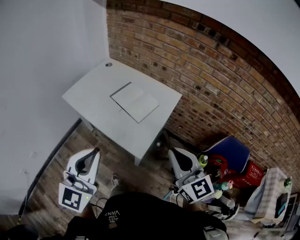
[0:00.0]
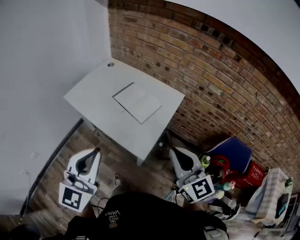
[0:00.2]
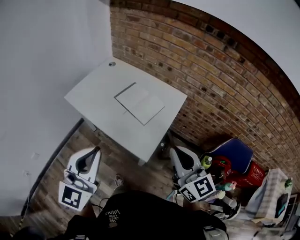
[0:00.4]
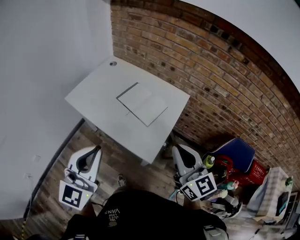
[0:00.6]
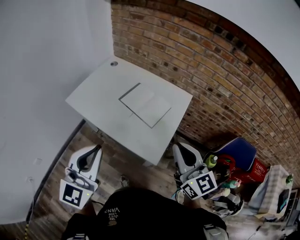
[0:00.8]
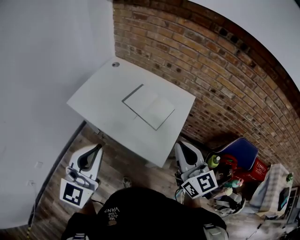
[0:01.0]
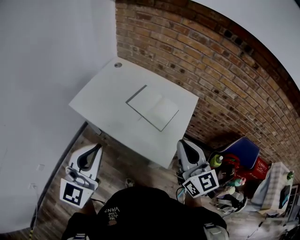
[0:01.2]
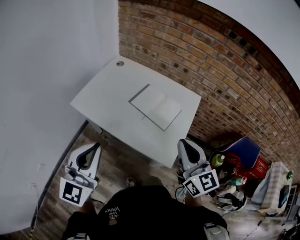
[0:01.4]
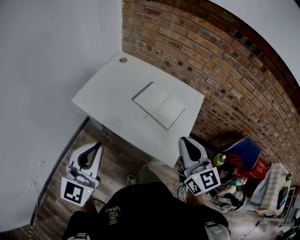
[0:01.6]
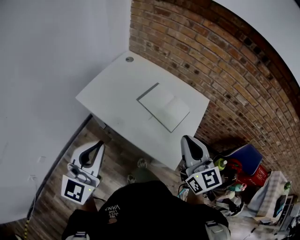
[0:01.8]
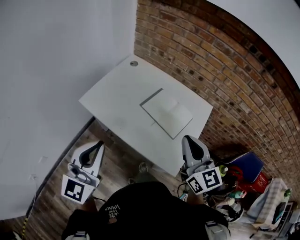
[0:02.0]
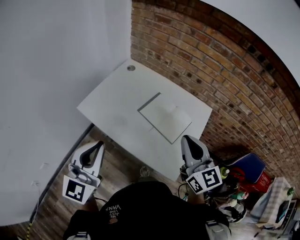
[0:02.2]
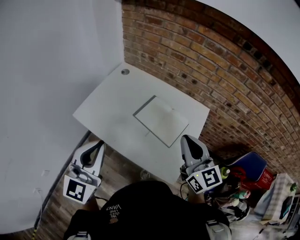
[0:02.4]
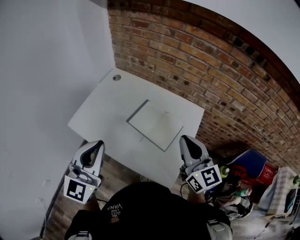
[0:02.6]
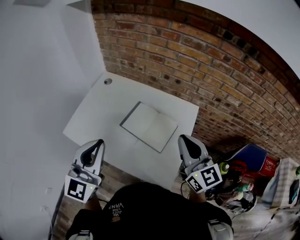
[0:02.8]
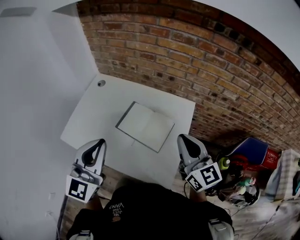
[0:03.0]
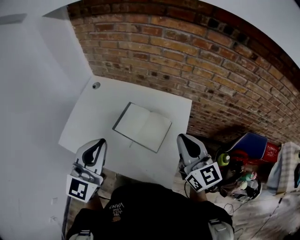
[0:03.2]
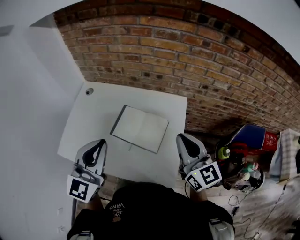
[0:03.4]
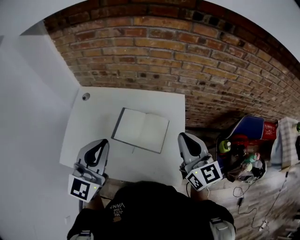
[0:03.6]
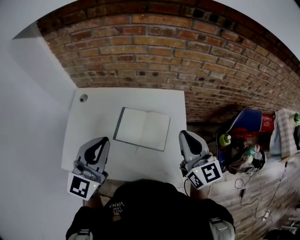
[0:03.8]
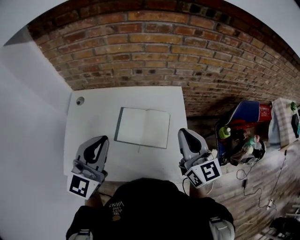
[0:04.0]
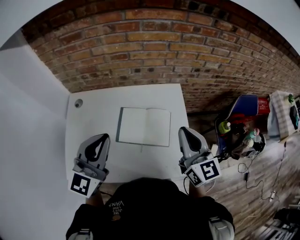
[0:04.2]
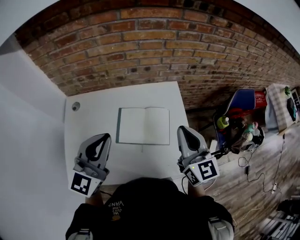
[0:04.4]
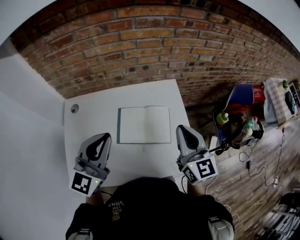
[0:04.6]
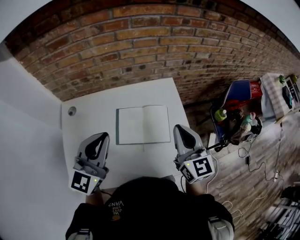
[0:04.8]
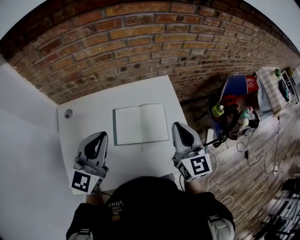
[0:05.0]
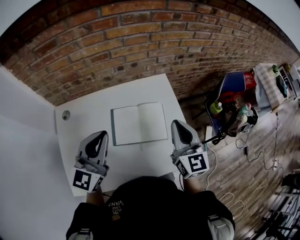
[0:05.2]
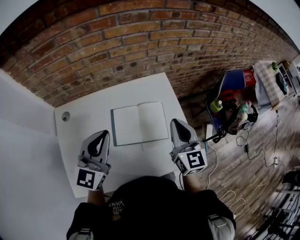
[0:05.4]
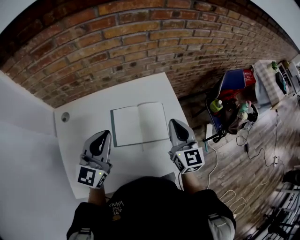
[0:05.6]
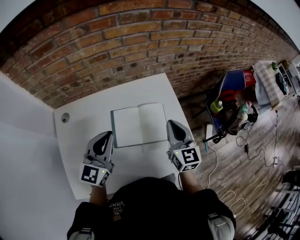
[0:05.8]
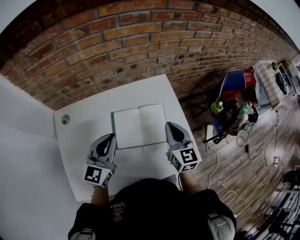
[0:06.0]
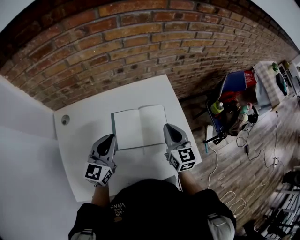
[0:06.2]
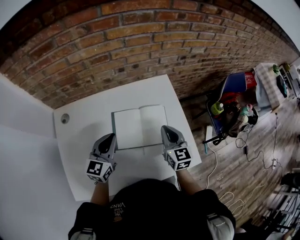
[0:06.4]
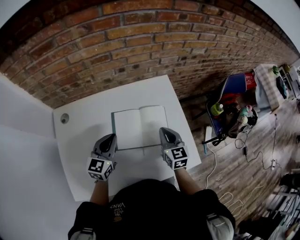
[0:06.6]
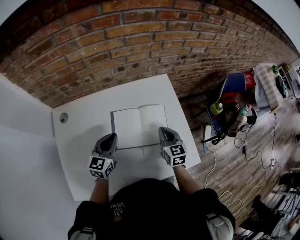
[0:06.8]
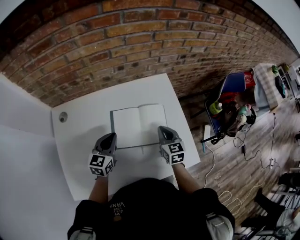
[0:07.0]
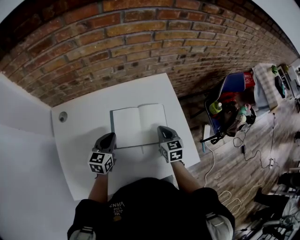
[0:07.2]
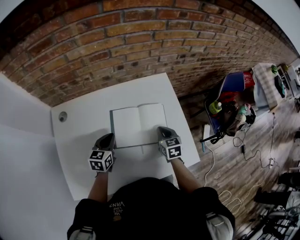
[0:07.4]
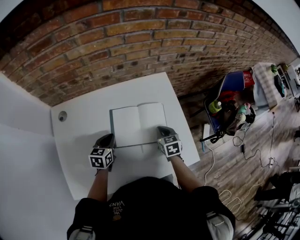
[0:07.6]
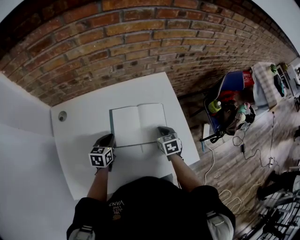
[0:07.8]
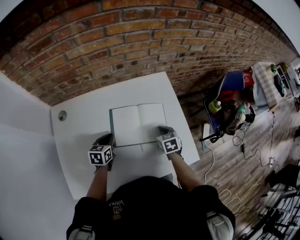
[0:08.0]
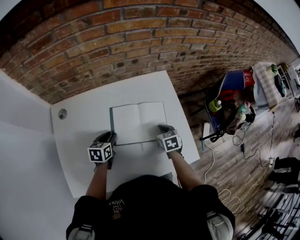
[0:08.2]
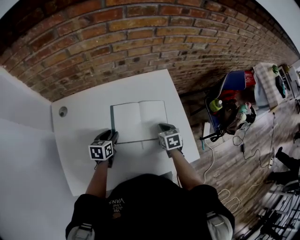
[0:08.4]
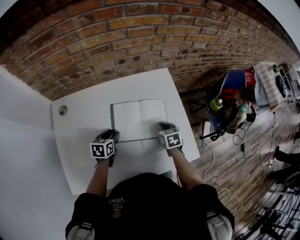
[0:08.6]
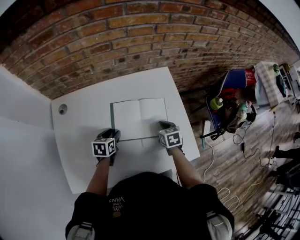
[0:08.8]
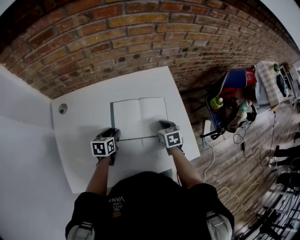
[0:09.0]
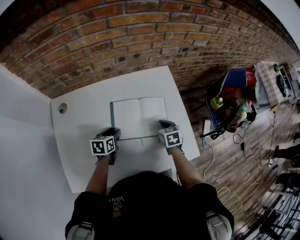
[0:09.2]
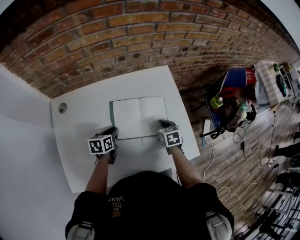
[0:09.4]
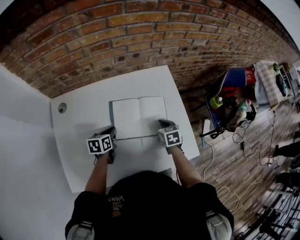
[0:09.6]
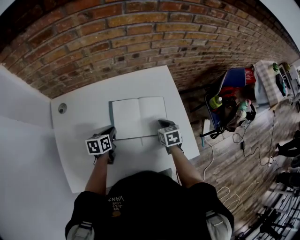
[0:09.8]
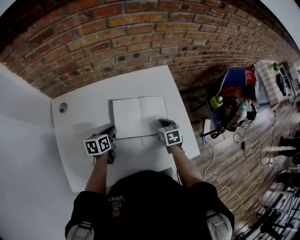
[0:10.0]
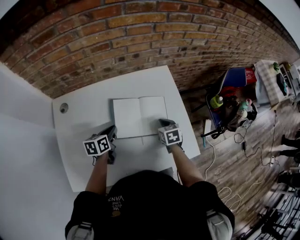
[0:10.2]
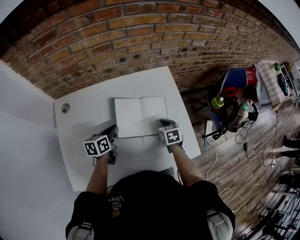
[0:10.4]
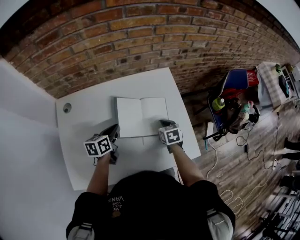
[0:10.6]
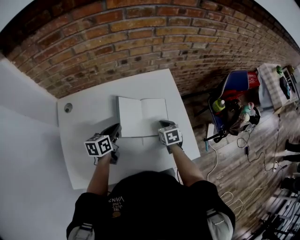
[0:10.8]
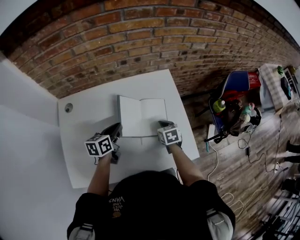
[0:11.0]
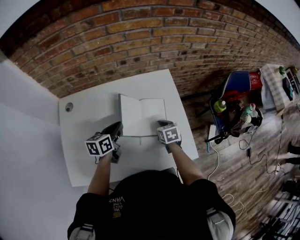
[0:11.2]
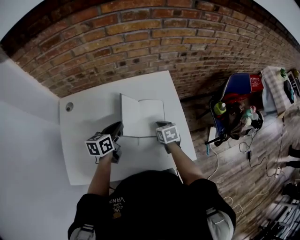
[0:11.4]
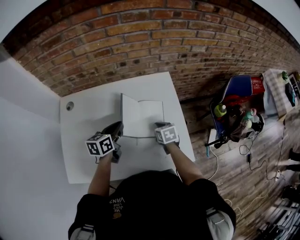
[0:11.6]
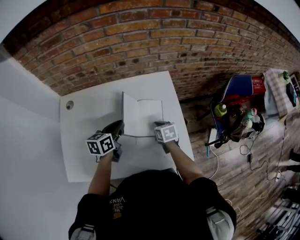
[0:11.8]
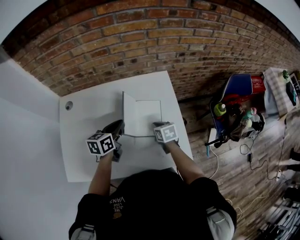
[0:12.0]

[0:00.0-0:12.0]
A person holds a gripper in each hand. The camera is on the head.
0:00.0 to 0:01.6: The two grippers go about 25 cm to the left and forward.
0:01.6 to 0:03.0: The two grippers go approximately 20 cm forward and to the right.
0:03.0 to 0:04.4: The left gripper changes place by roughly 15 cm, and changes its angle by roughly 30 degrees, while the right gripper ends up roughly 5 cm from where it was, and changes its angle by roughly 30 degrees.
0:04.4 to 0:06.0: The left gripper moves downward and forward, about 15 cm; the right gripper shifts some 15 cm downward.
0:06.0 to 0:07.6: Both grippers travel together downward, roughly 20 cm. The left gripper tilts its fingers about 30 degrees downward, while the right gripper angles its fingers downward, by approximately 30 degrees.
0:07.6 to 0:09.0: The left gripper opens.
0:09.0 to 0:10.4: The left gripper moves upward, approximately 5 cm, and closes up.
0:10.4 to 0:12.0: The left gripper is displaced to the right and upward by approximately 10 cm.

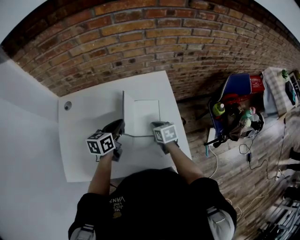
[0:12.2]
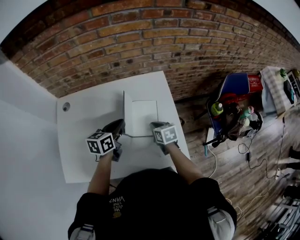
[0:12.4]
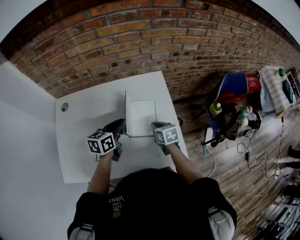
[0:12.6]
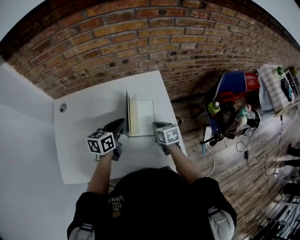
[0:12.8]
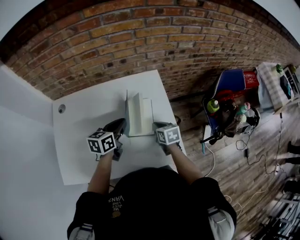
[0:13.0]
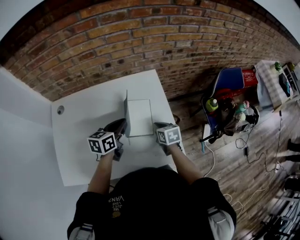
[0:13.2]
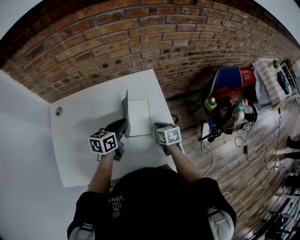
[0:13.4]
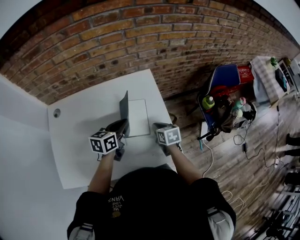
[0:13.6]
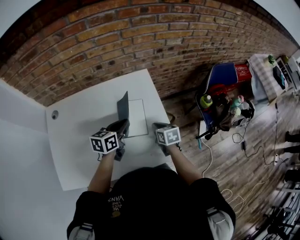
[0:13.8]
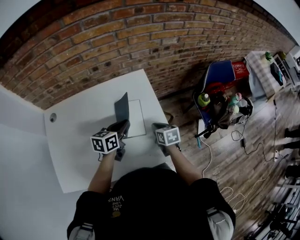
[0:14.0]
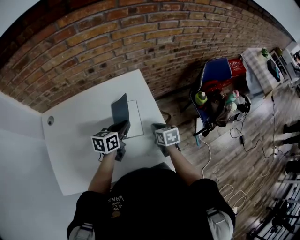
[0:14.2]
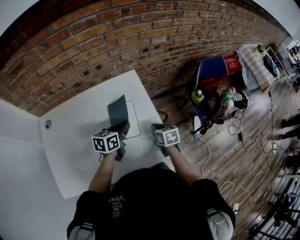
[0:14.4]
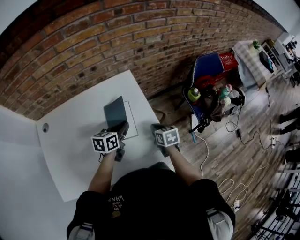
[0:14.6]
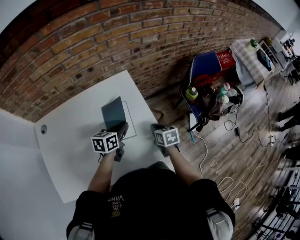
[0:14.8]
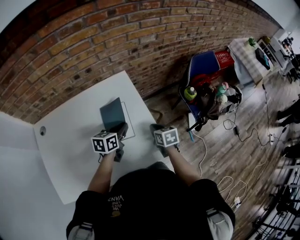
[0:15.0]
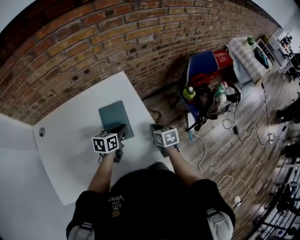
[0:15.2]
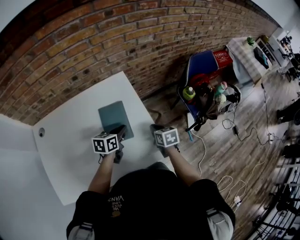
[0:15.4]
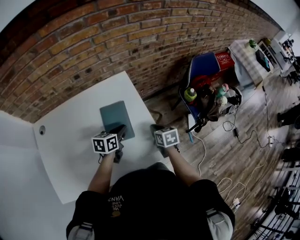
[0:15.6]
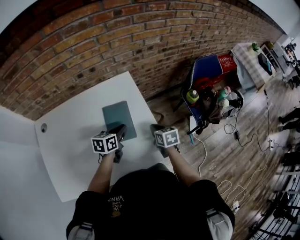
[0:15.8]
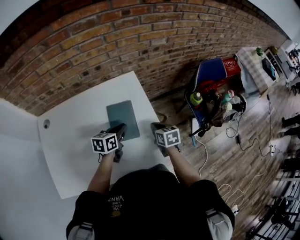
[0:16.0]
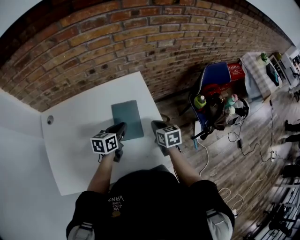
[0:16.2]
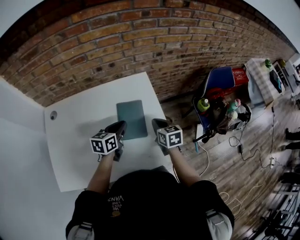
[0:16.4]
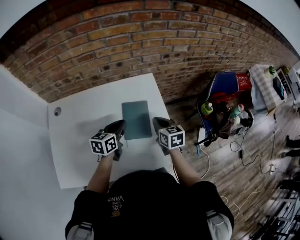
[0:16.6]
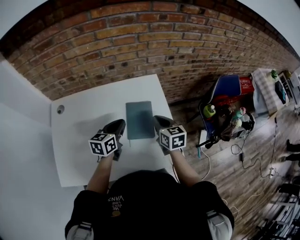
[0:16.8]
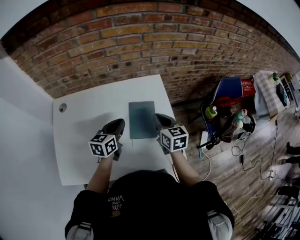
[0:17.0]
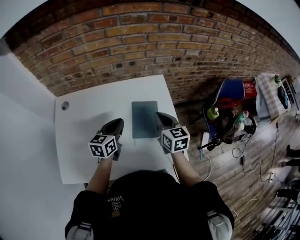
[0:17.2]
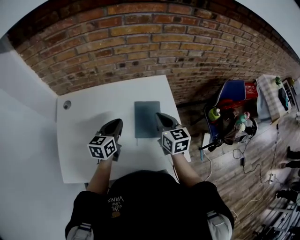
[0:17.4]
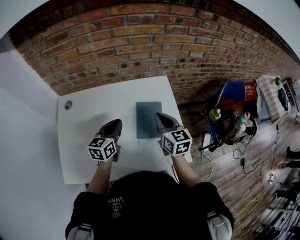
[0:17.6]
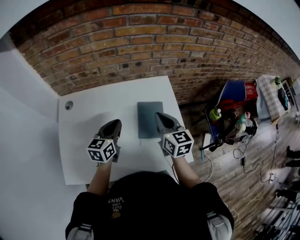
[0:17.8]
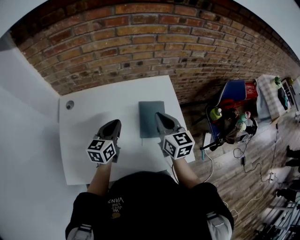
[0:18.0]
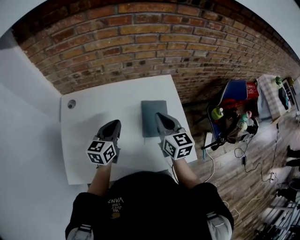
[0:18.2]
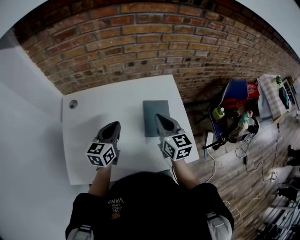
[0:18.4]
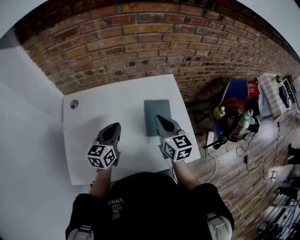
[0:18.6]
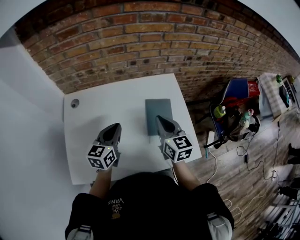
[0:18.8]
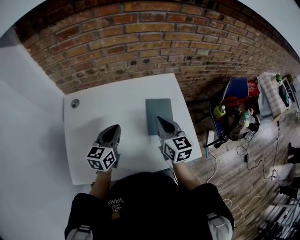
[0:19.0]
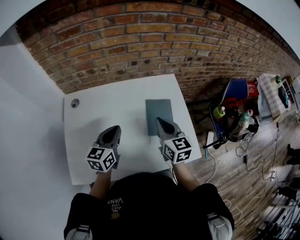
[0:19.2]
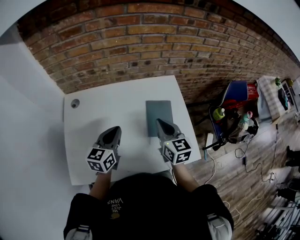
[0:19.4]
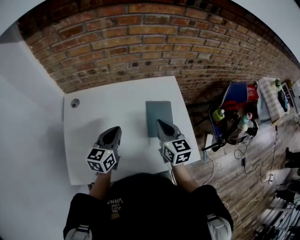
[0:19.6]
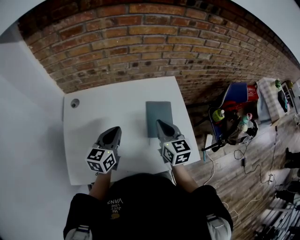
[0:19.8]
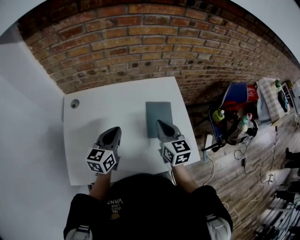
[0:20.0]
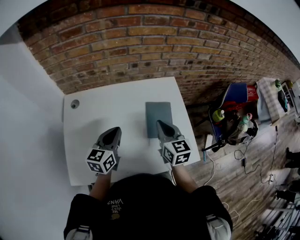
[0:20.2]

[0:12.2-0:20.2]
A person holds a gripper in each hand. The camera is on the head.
0:12.2 to 0:13.8: Both grippers move to the right, some 10 cm.
0:13.8 to 0:15.4: The right gripper is displaced to the right by approximately 10 cm. Meanwhile the left gripper moves to the right and downward, roughly 10 cm.
0:15.4 to 0:17.0: The two grippers go about 20 cm to the left and upward. The left gripper changes its angle by roughly 20 degrees. Meanwhile the right gripper swivels some 30 degrees.
0:17.0 to 0:18.6: The right gripper is displaced to the left and upward by approximately 10 cm; the left gripper is displaced to the left by about 10 cm.
0:18.6 to 0:20.2: The grippers make only small movements.

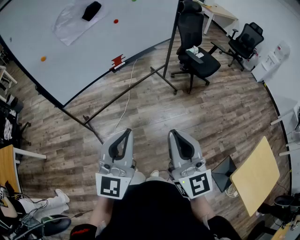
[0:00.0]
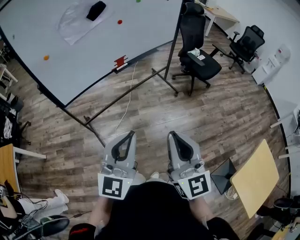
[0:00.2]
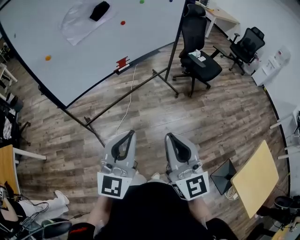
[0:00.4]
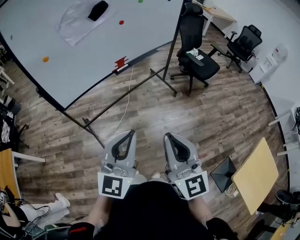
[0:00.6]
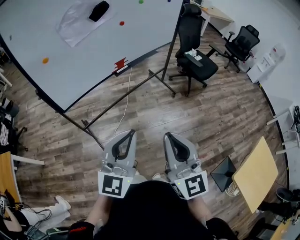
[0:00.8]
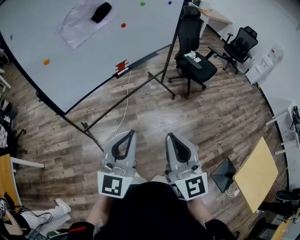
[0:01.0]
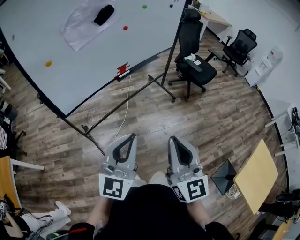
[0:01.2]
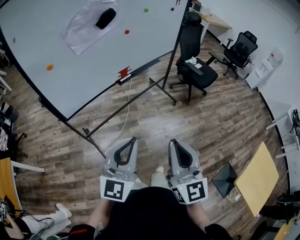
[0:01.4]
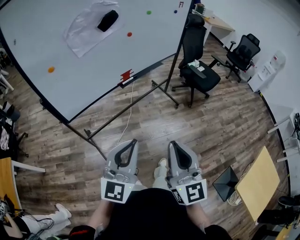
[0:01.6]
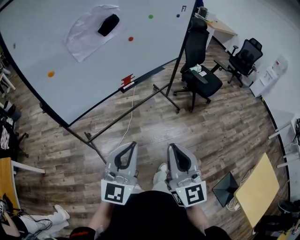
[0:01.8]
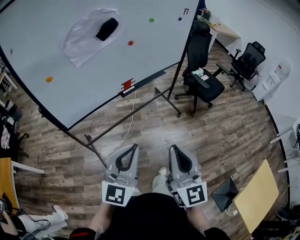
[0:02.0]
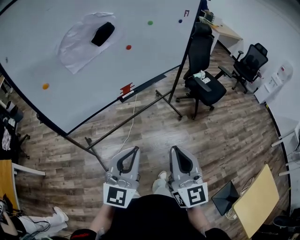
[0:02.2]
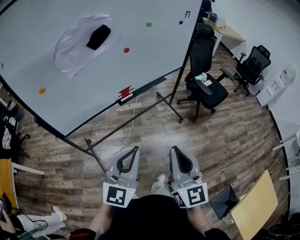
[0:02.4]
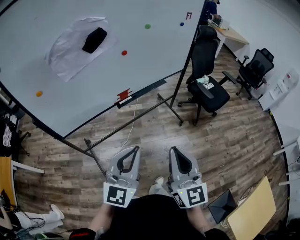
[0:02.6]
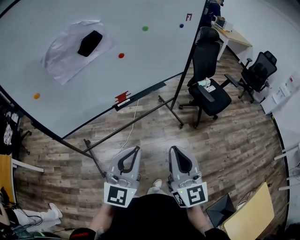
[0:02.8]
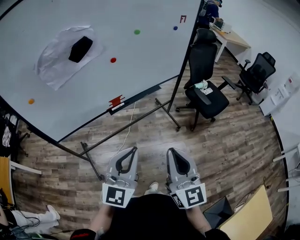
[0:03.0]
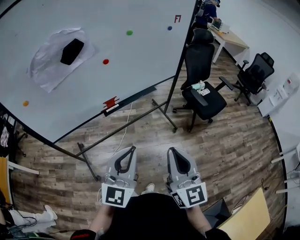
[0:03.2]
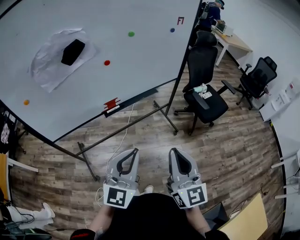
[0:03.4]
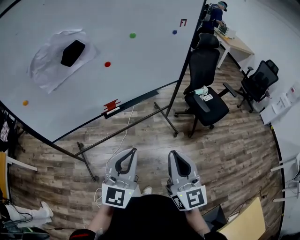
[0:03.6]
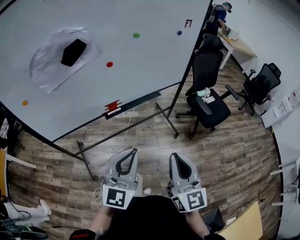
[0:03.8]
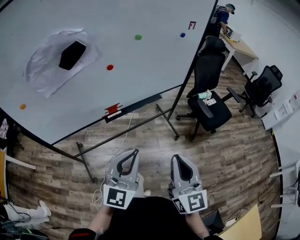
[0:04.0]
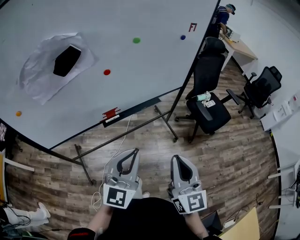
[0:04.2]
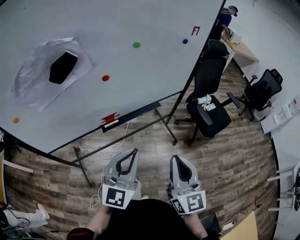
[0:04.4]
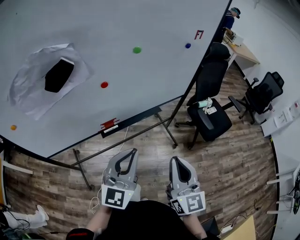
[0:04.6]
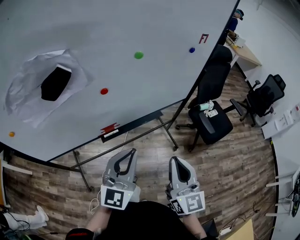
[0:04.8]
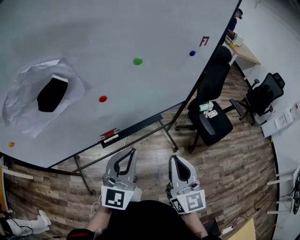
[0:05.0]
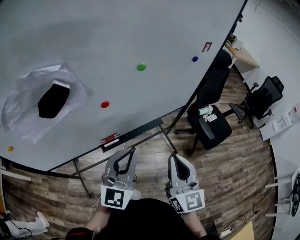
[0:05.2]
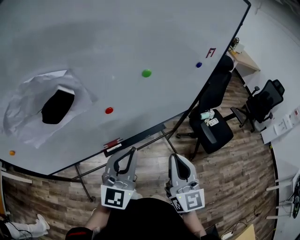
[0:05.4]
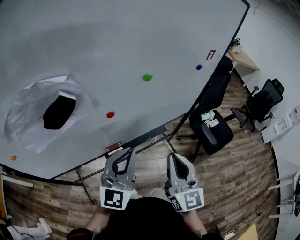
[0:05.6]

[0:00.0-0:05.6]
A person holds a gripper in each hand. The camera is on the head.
0:00.0 to 0:01.4: The two grippers go approximately 10 cm to the left.
0:01.4 to 0:02.8: Both grippers move forward and to the right, about 20 cm.
0:02.8 to 0:04.2: Both grippers travel together forward and to the right, some 15 cm.
0:04.2 to 0:05.6: The two grippers go approximately 20 cm forward.
